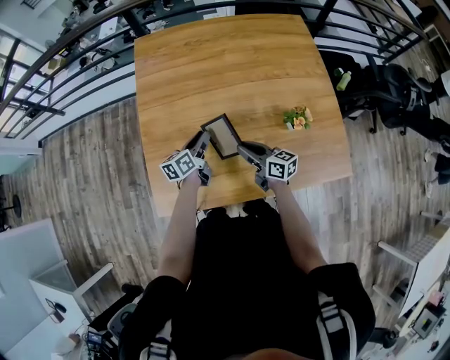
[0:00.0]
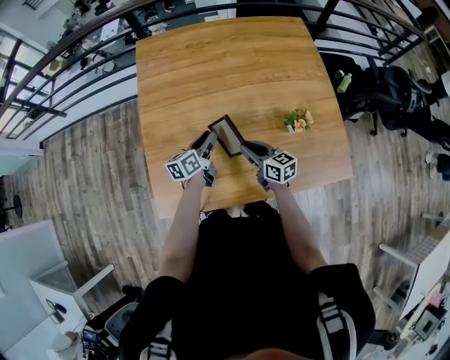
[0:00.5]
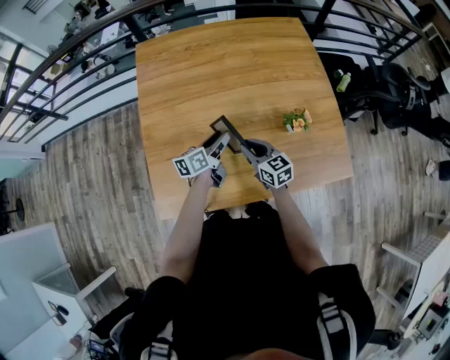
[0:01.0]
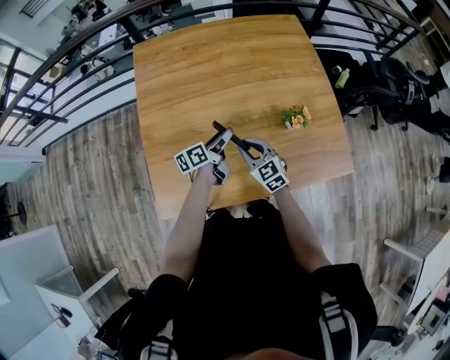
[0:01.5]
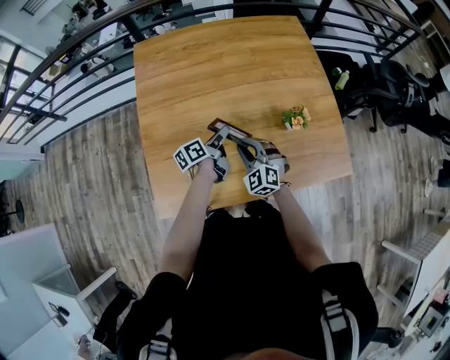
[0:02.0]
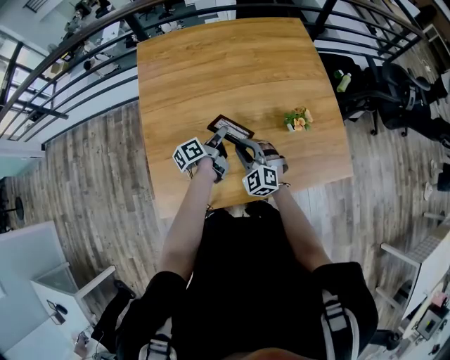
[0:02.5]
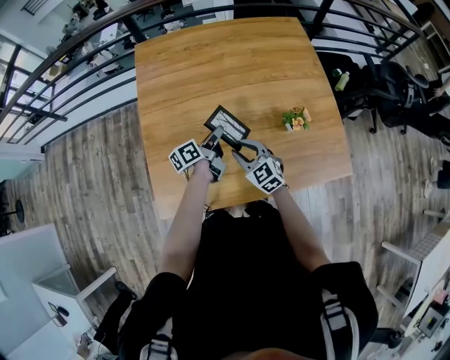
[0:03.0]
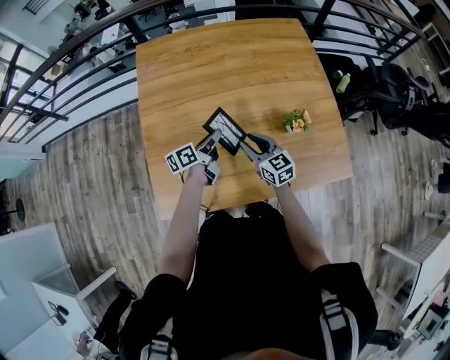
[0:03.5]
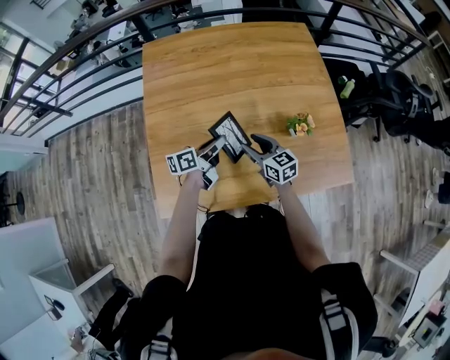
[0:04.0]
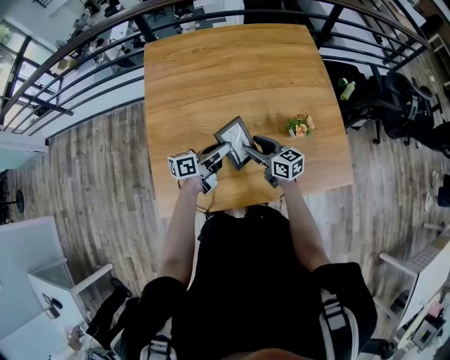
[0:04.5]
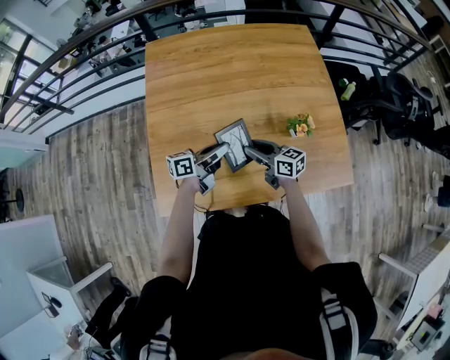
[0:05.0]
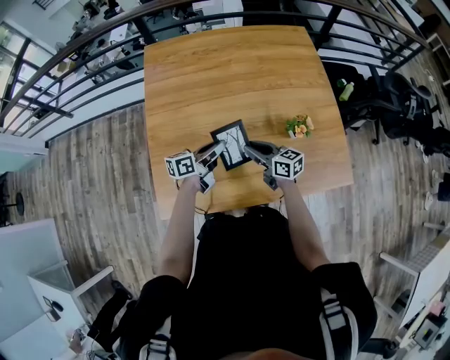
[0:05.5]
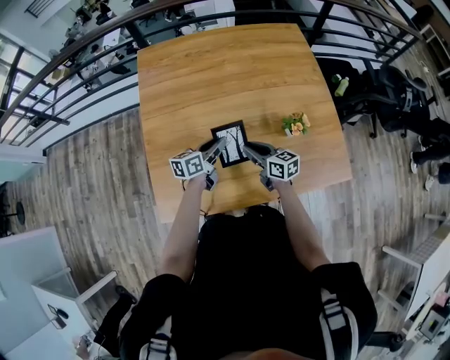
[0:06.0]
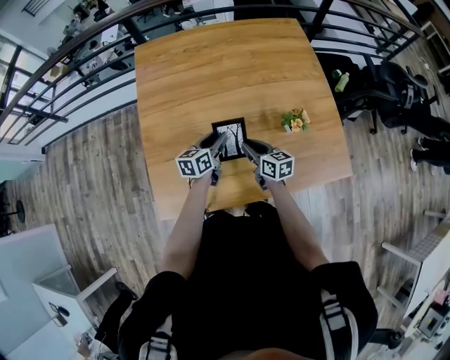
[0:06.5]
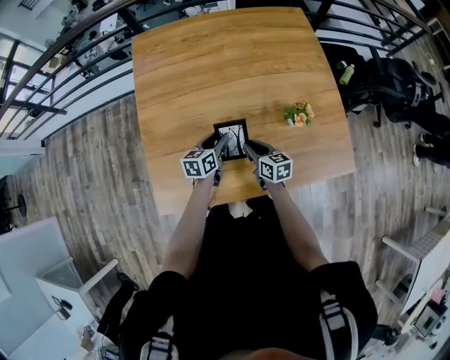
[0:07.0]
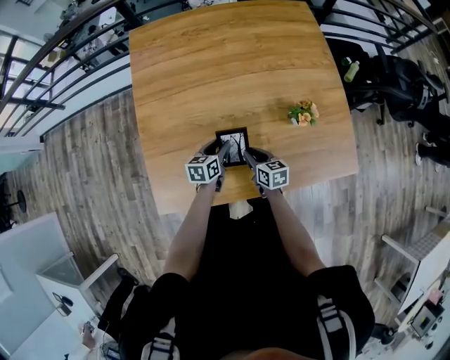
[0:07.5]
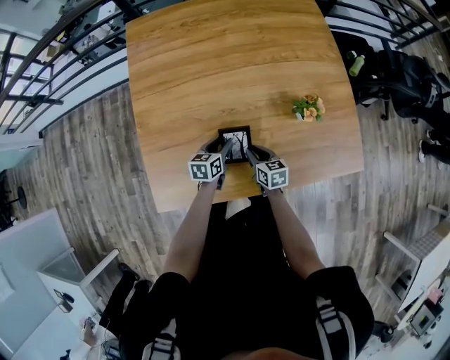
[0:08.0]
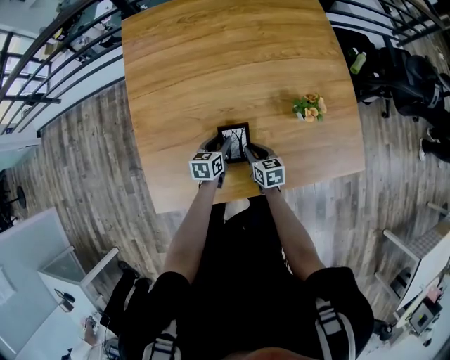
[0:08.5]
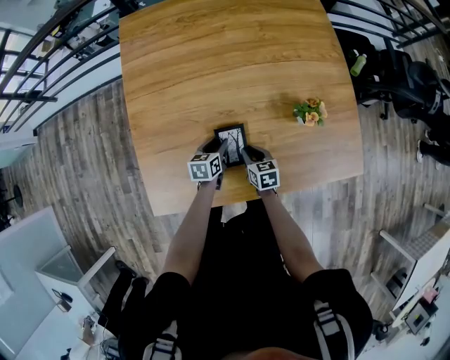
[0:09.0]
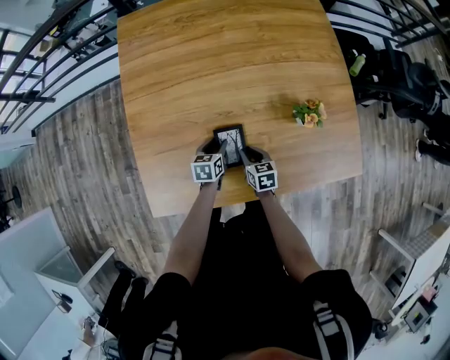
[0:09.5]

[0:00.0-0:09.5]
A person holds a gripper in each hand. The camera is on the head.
0:00.0 to 0:02.0: The left gripper travels to the right by approximately 10 cm, and swivels approximately 20 degrees, while the right gripper rotates around the line of its fingers by about 70 degrees, counterclockwise from behind.
0:02.0 to 0:04.0: The left gripper closes. The right gripper rotates around the line of its fingers by roughly 50 degrees, clockwise from behind.
0:05.5 to 0:07.5: Both grippers travel together downward, roughly 10 cm. The left gripper swivels some 30 degrees; the right gripper turns by approximately 30 degrees.
0:07.5 to 0:09.5: Both grippers travel together downward, roughly 5 cm.

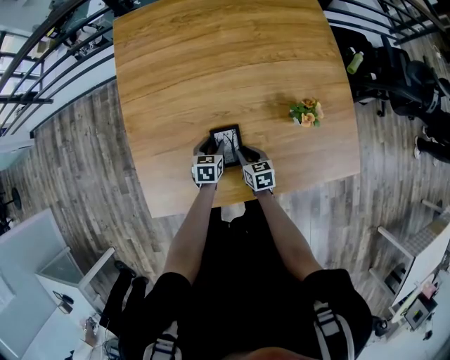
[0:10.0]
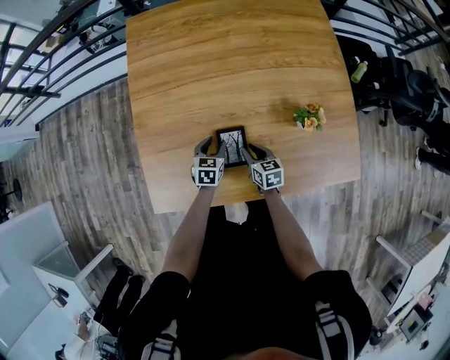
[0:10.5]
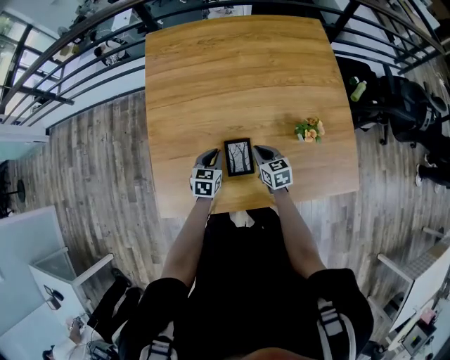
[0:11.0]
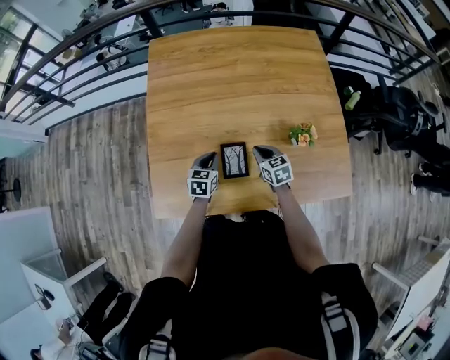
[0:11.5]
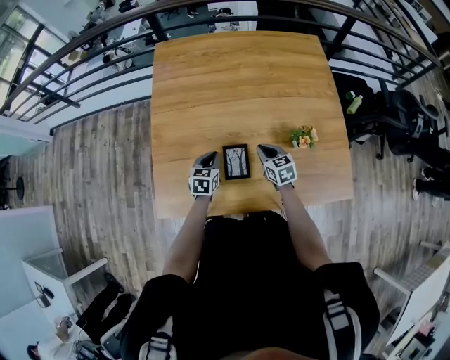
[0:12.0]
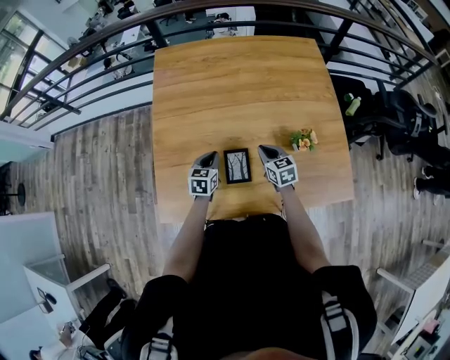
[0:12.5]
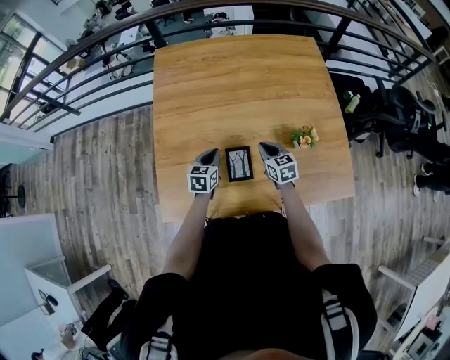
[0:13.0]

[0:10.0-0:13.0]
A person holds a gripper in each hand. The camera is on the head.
0:10.0 to 0:11.5: The right gripper goes about 10 cm upward and forward. The left gripper is displaced upward by about 10 cm, and closes its fingers.
0:11.5 to 0:13.0: The grippers stay close to where they were, moving slightly.

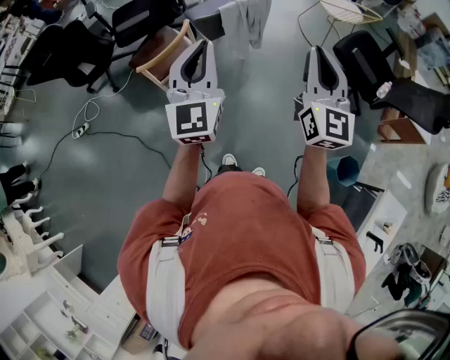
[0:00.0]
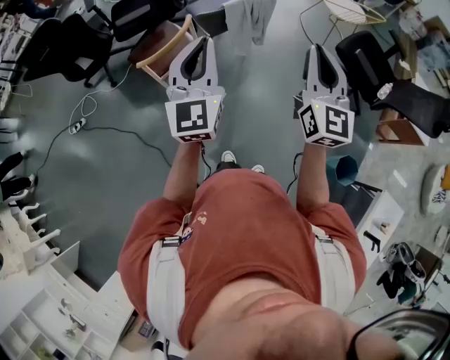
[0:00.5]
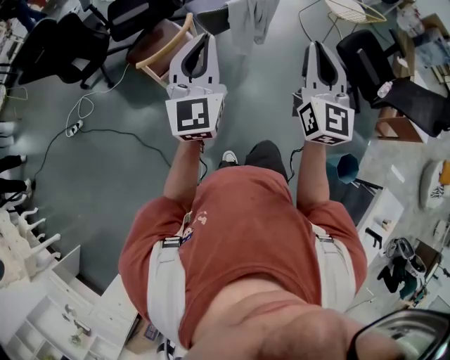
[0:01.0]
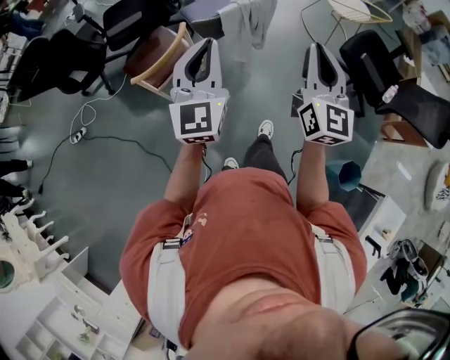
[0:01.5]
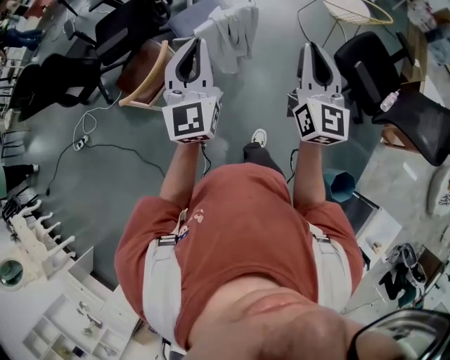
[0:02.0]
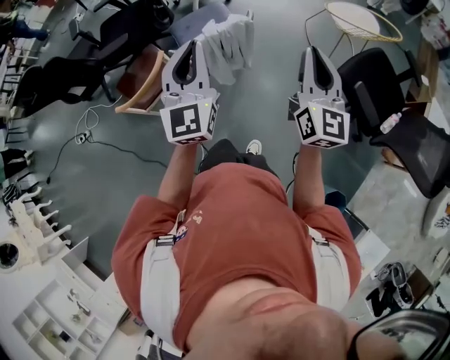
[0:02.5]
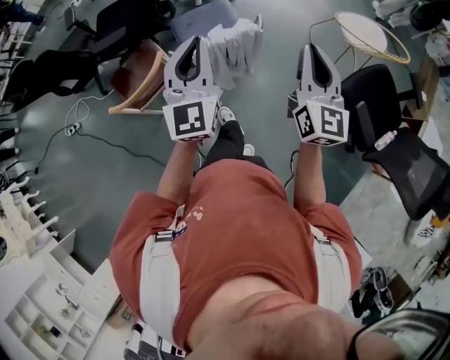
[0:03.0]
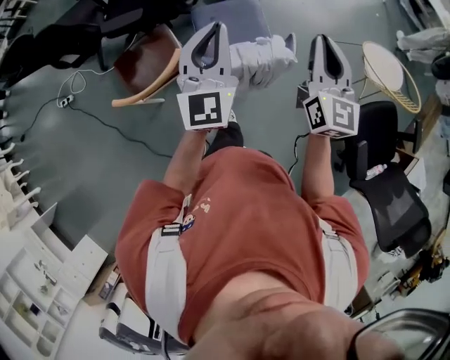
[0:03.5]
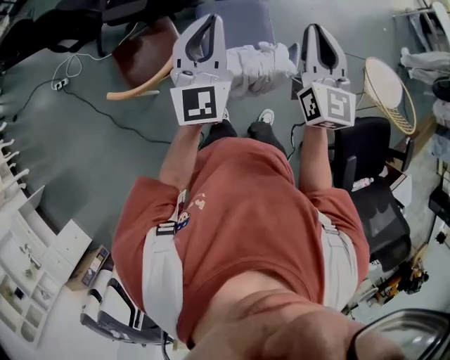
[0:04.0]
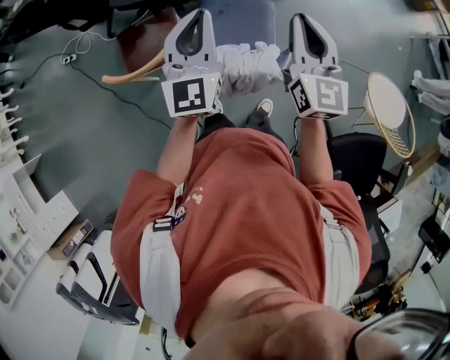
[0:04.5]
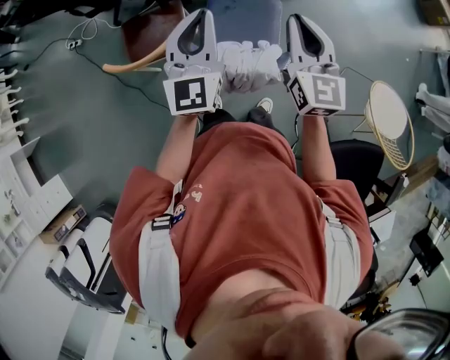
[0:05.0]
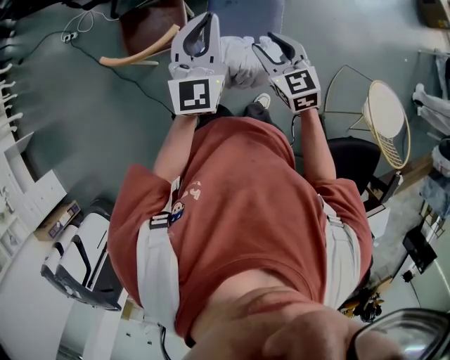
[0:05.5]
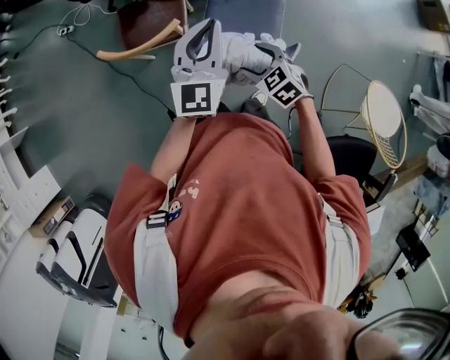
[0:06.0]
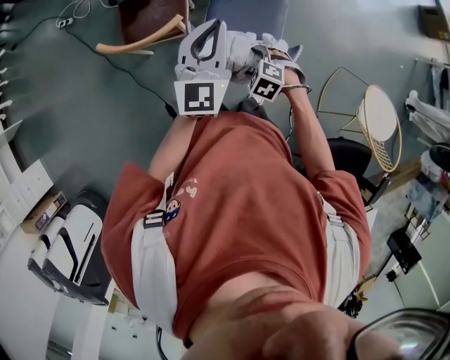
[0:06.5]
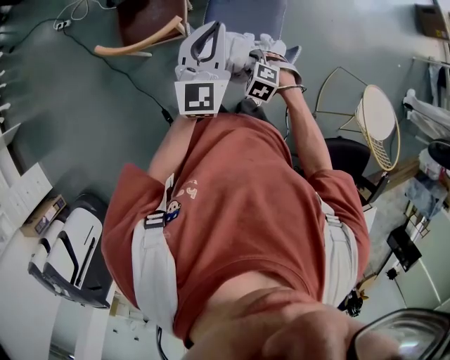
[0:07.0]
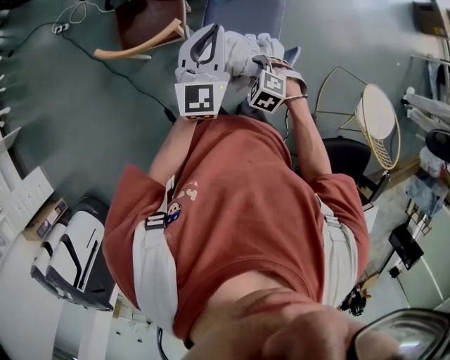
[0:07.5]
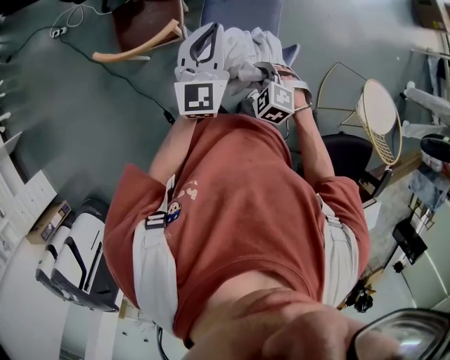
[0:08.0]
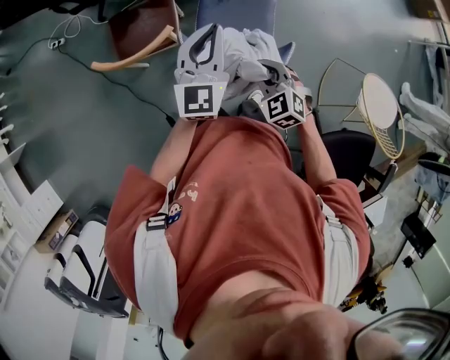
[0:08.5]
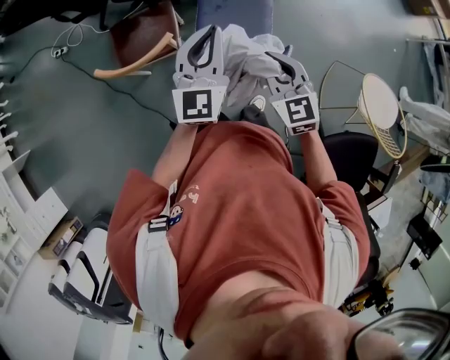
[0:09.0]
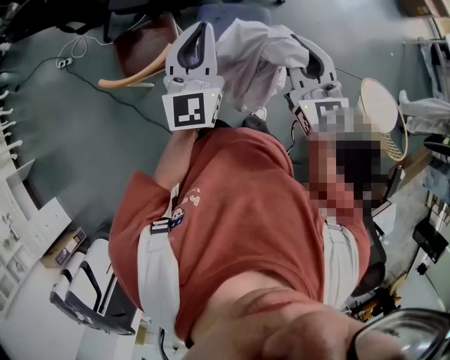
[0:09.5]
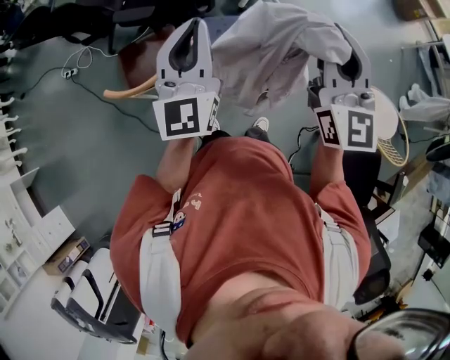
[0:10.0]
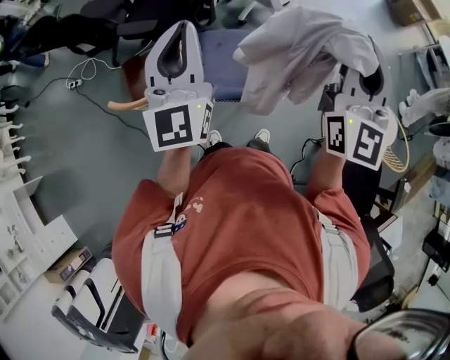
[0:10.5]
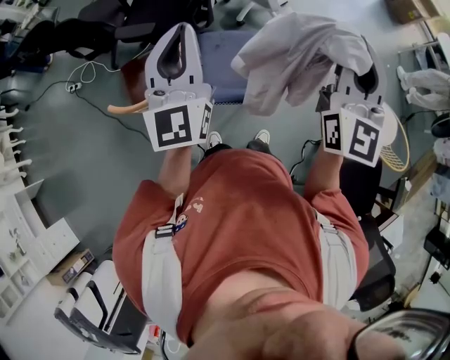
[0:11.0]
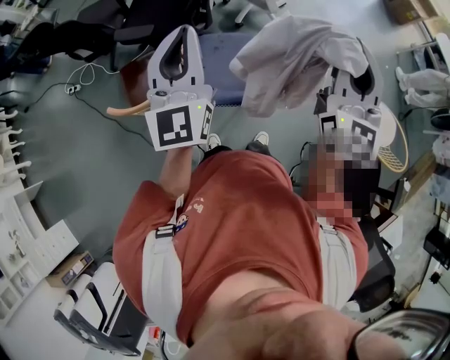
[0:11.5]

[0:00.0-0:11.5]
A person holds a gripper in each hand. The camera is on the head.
0:00.0 to 0:02.0: The grippers both shift forward by some 25 cm.
0:02.0 to 0:04.0: The right gripper ends up about 40 cm from where it was, and turns by roughly 30 degrees. The left gripper changes place by roughly 35 cm, and turns by some 20 degrees.
0:04.0 to 0:06.0: The right gripper moves downward, some 25 cm, angles its fingers downward, by some 50 degrees, and opens; the left gripper travels downward by about 5 cm.
0:06.0 to 0:07.5: The right gripper goes approximately 5 cm downward, rotates roughly 30 degrees, and closes.
0:07.5 to 0:09.5: The right gripper heads upward, covering about 30 cm, and tips its fingers upward by some 60 degrees. The left gripper goes some 10 cm upward.
0:09.5 to 0:11.5: The right gripper goes roughly 20 cm upward and to the right, and turns by about 30 degrees; the left gripper is displaced upward by approximately 10 cm.

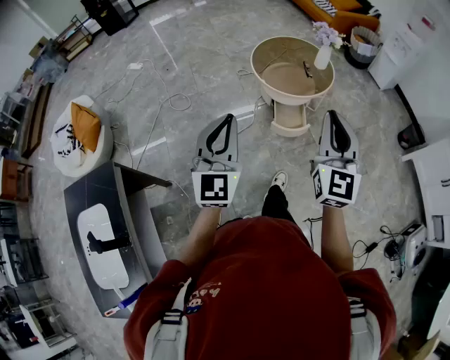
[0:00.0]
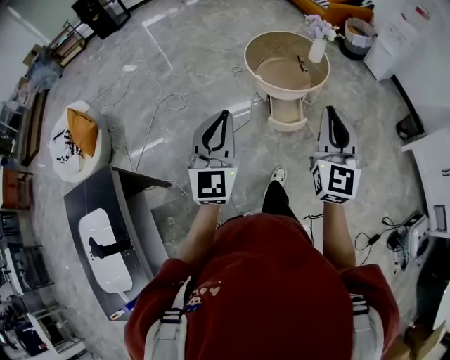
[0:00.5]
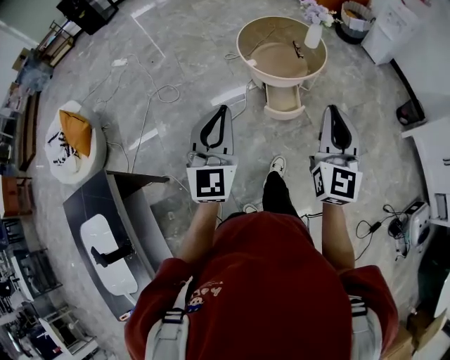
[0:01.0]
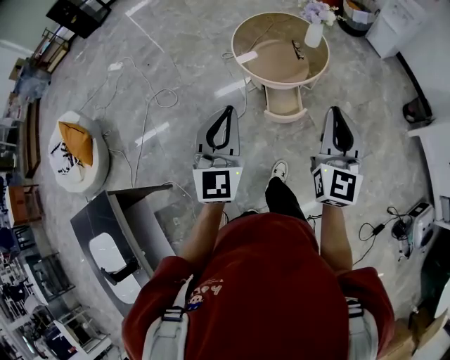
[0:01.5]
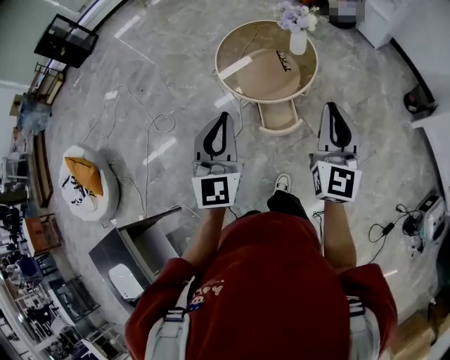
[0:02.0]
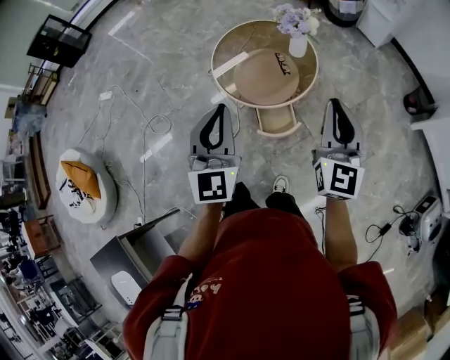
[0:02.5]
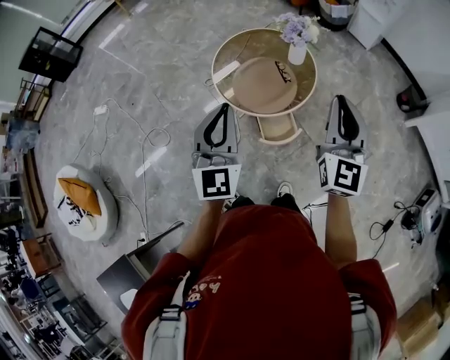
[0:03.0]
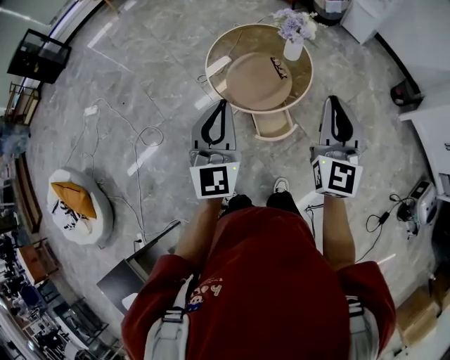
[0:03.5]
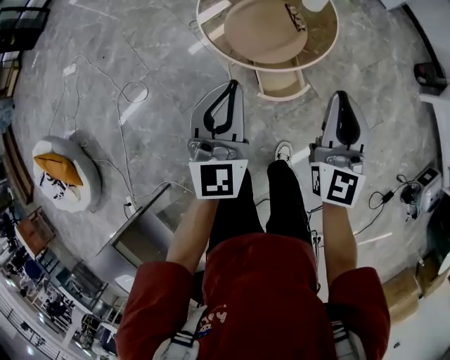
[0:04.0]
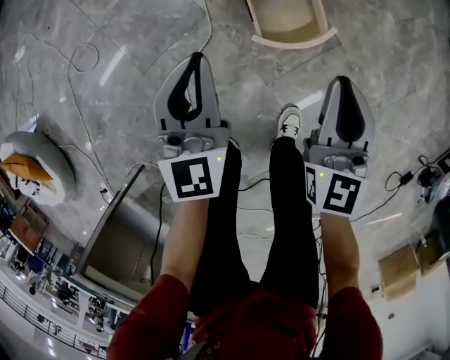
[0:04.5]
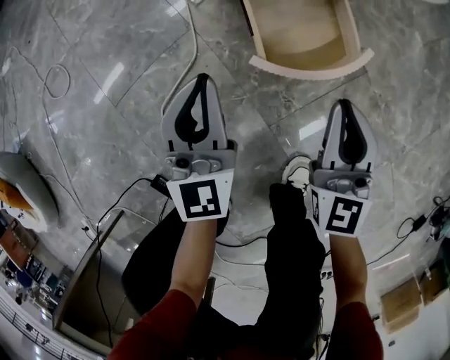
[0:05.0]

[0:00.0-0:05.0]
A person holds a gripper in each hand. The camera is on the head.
0:00.0 to 0:02.5: Both grippers travel together forward, roughly 35 cm.
0:02.5 to 0:05.0: The grippers both shift downward by approximately 70 cm.
